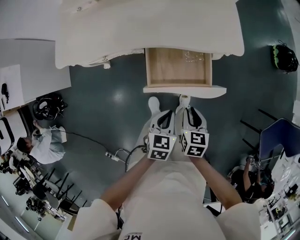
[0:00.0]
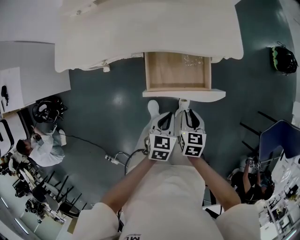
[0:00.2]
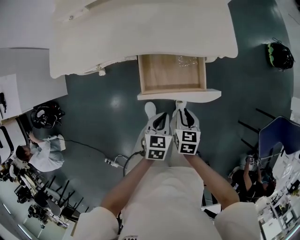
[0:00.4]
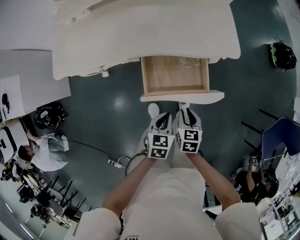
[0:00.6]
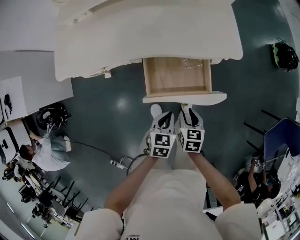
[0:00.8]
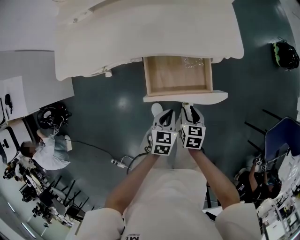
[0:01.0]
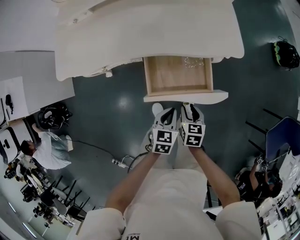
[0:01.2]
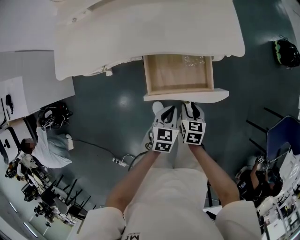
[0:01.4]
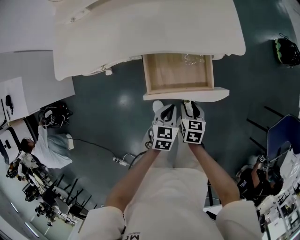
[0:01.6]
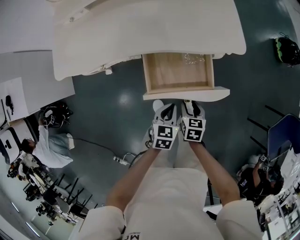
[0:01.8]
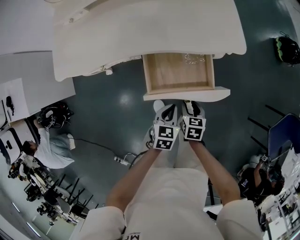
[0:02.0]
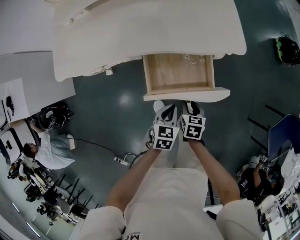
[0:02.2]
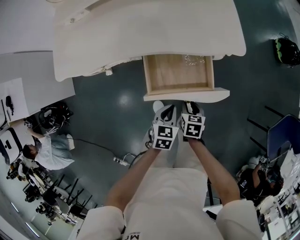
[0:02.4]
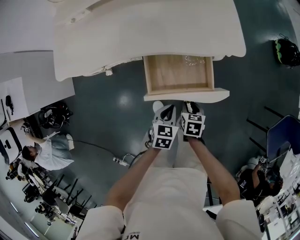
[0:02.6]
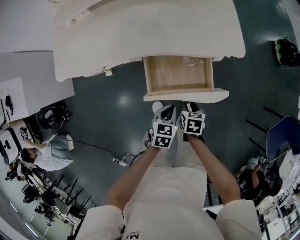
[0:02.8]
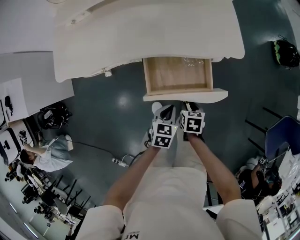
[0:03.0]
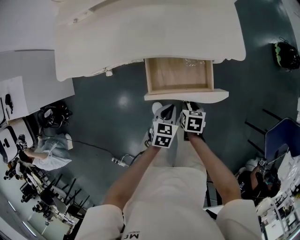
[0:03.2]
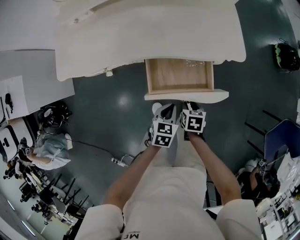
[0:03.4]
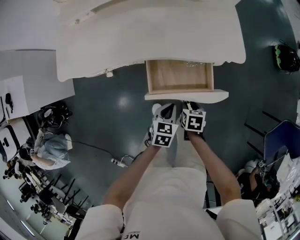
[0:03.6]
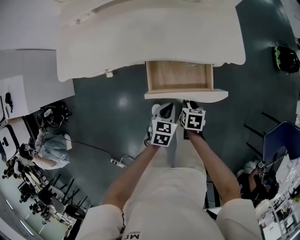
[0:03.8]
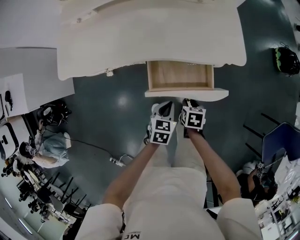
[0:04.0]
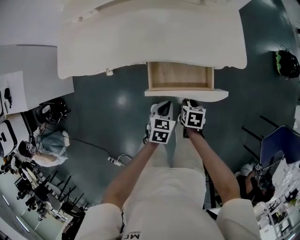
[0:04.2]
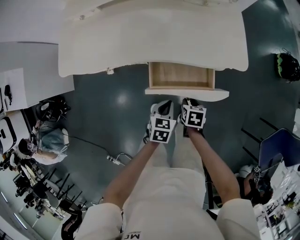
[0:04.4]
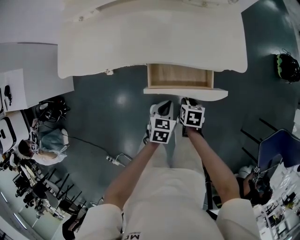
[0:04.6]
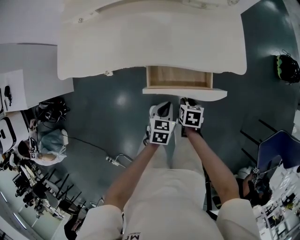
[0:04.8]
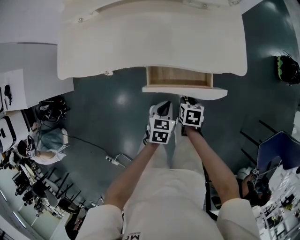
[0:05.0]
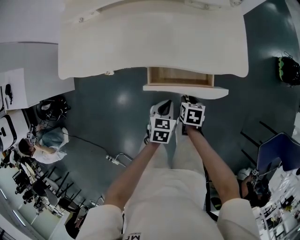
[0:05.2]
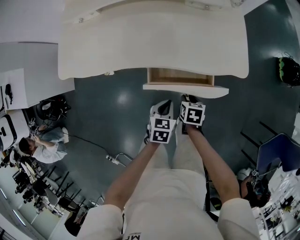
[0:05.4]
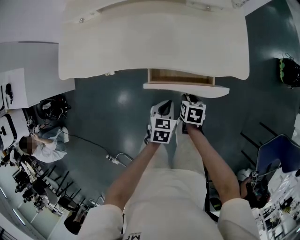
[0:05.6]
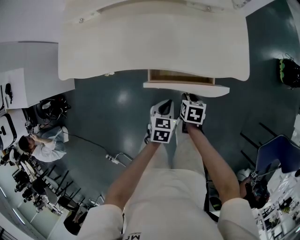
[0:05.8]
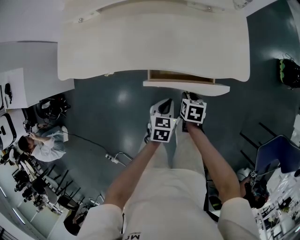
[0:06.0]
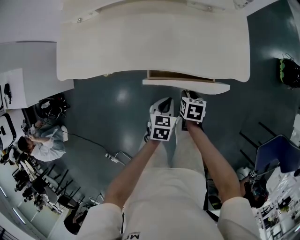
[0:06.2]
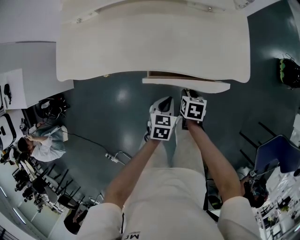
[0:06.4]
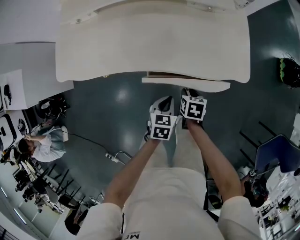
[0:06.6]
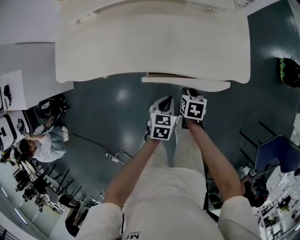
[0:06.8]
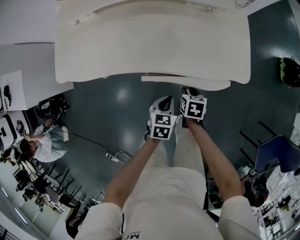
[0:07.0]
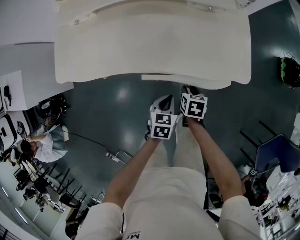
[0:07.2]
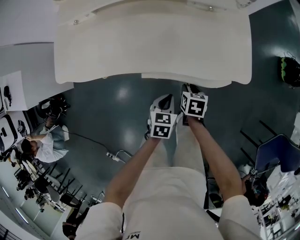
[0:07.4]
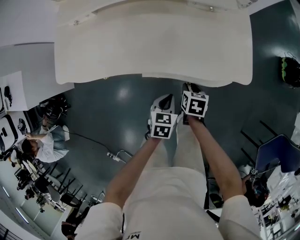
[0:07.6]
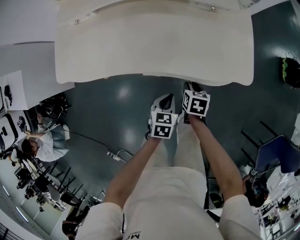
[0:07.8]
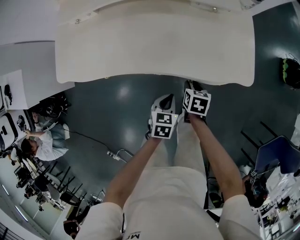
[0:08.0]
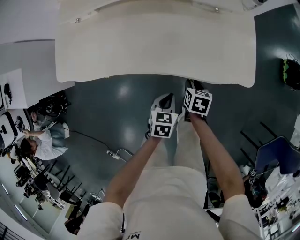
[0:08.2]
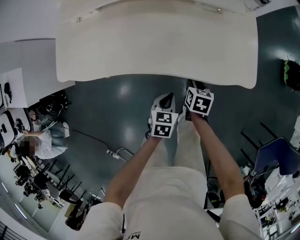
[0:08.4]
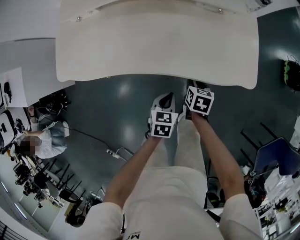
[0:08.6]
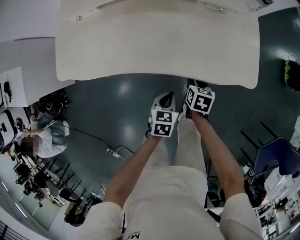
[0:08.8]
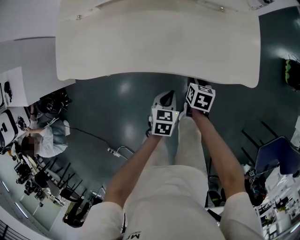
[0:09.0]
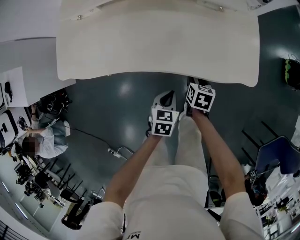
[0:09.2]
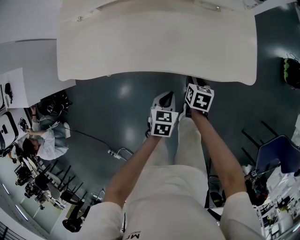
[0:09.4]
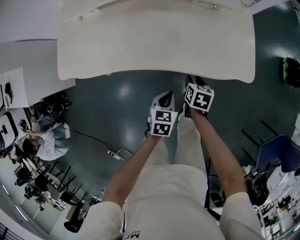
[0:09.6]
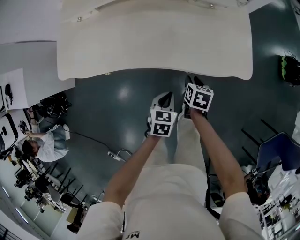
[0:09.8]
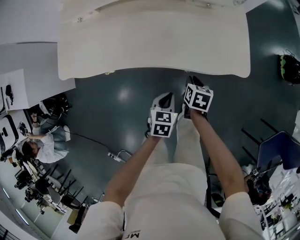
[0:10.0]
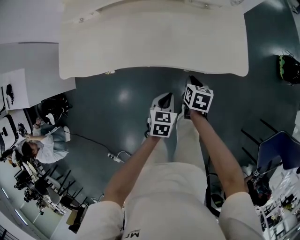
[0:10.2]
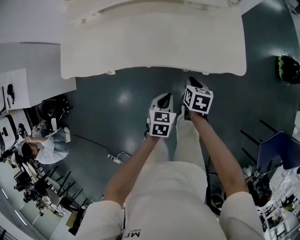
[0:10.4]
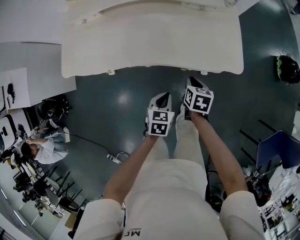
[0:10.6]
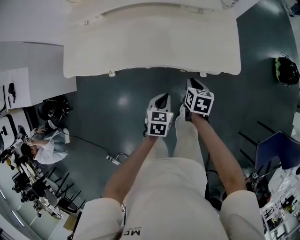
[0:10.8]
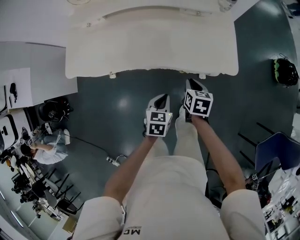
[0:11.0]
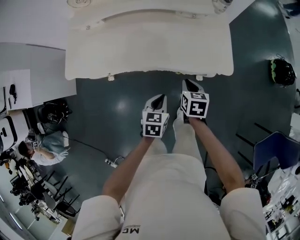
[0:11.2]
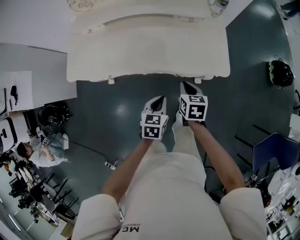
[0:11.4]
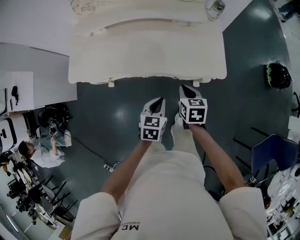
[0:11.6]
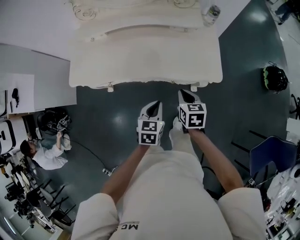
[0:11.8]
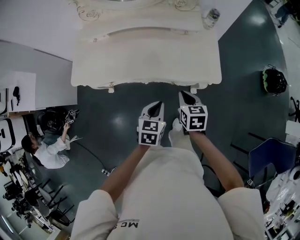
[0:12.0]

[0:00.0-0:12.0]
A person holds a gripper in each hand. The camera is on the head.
0:00.0 to 0:01.6: The grippers both shift downward by about 10 cm. The right gripper opens.
0:01.6 to 0:03.0: The grippers move only a little.
0:03.0 to 0:04.4: The grippers stay close to where they were, moving slightly.
0:04.4 to 0:06.0: The right gripper heads forward, covering some 5 cm.
0:06.0 to 0:07.6: The right gripper is displaced forward by roughly 5 cm.
0:07.6 to 0:09.0: There are only small adjustments of the grippers.
0:09.0 to 0:10.4: The right gripper travels upward by about 5 cm, and closes, while the left gripper ends up some 5 cm from where it was.
0:10.4 to 0:12.0: Both grippers travel together upward, roughly 15 cm.

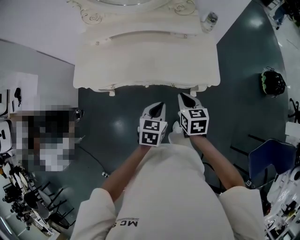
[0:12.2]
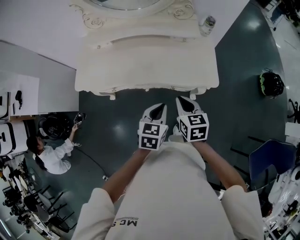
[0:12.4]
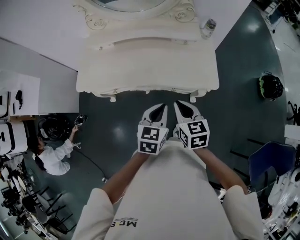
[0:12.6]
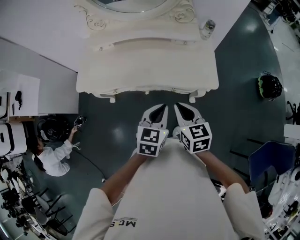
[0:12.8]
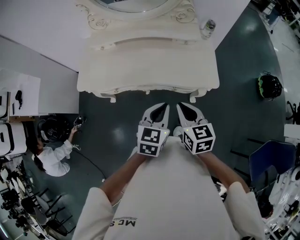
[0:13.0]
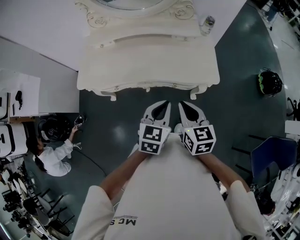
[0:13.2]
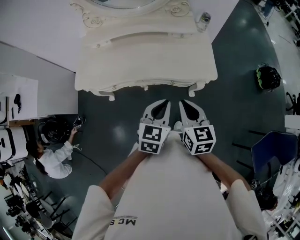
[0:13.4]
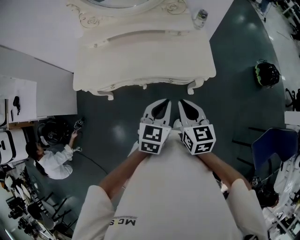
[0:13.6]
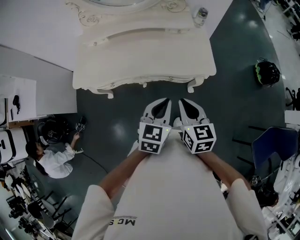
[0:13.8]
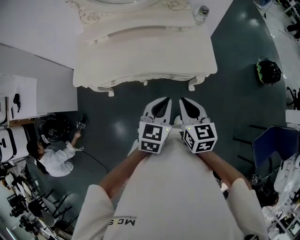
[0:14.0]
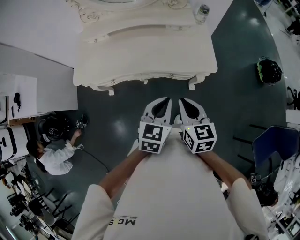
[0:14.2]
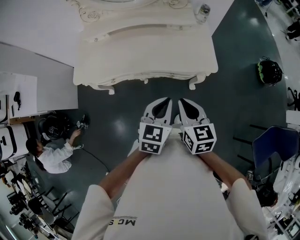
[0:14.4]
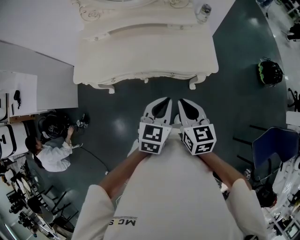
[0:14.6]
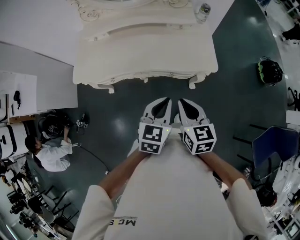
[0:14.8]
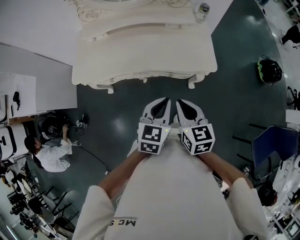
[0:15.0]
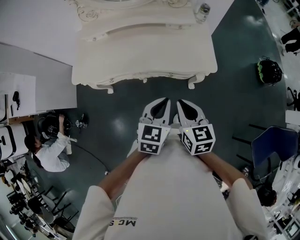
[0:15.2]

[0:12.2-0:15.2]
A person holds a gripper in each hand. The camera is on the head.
0:12.2 to 0:13.8: The right gripper goes approximately 10 cm upward and backward. Meanwhile the left gripper travels upward by about 10 cm.
0:13.8 to 0:15.2: The grippers make only small movements.

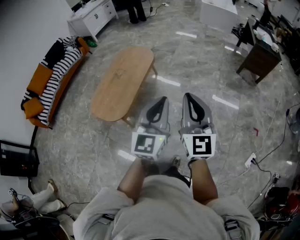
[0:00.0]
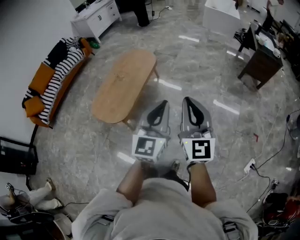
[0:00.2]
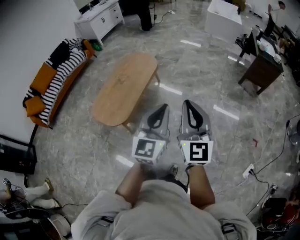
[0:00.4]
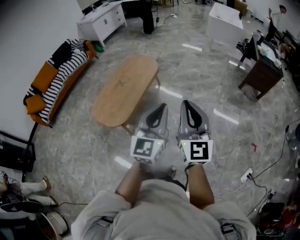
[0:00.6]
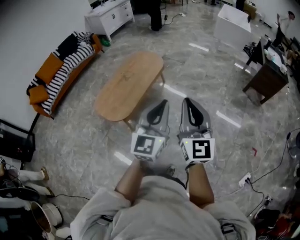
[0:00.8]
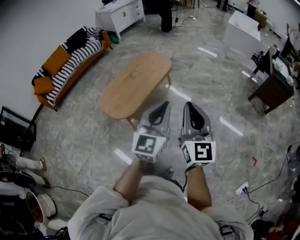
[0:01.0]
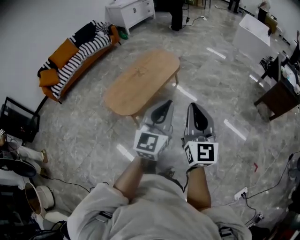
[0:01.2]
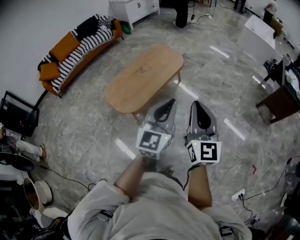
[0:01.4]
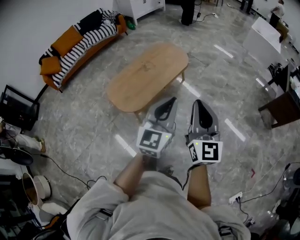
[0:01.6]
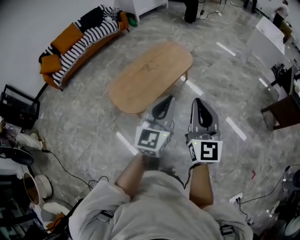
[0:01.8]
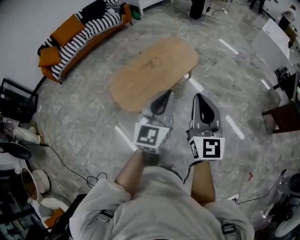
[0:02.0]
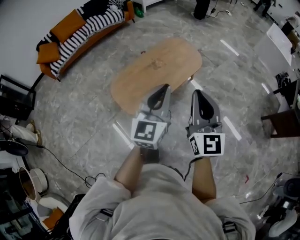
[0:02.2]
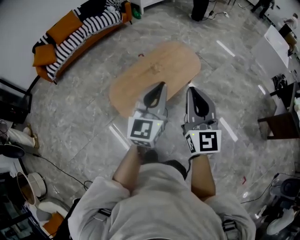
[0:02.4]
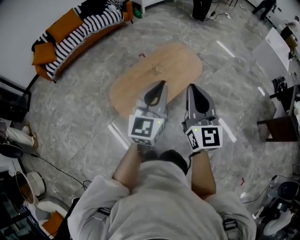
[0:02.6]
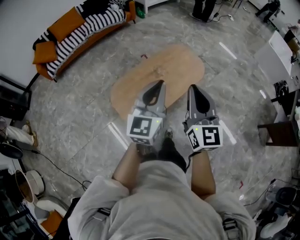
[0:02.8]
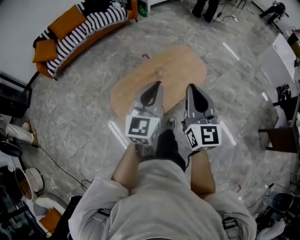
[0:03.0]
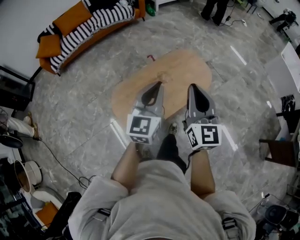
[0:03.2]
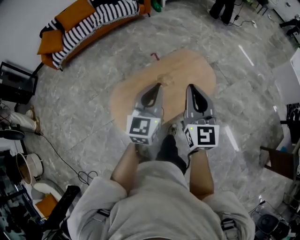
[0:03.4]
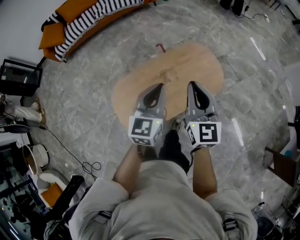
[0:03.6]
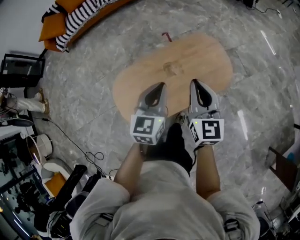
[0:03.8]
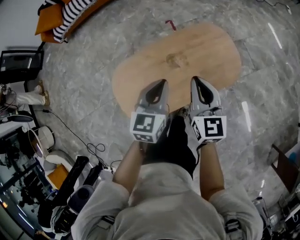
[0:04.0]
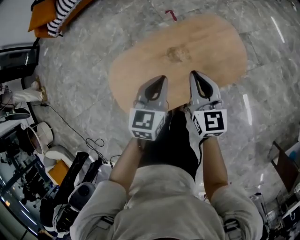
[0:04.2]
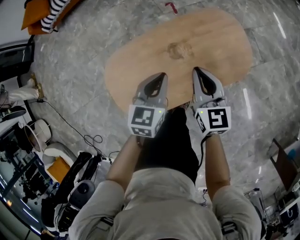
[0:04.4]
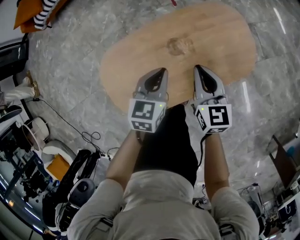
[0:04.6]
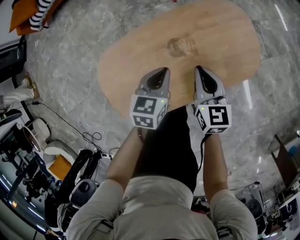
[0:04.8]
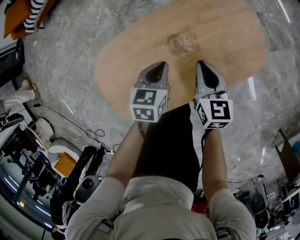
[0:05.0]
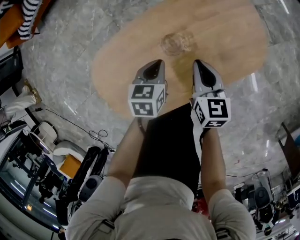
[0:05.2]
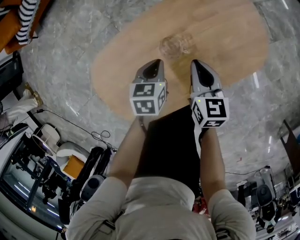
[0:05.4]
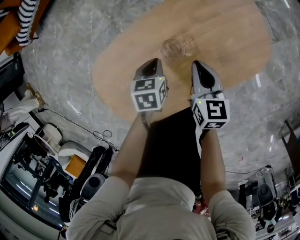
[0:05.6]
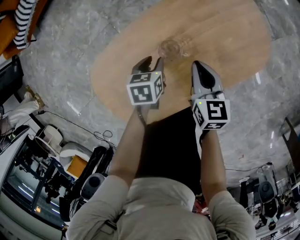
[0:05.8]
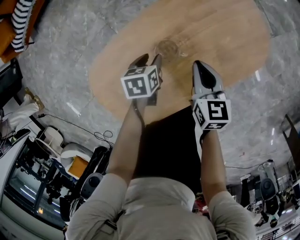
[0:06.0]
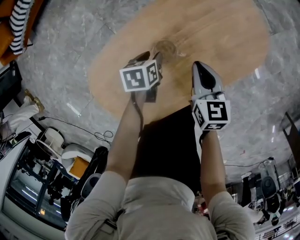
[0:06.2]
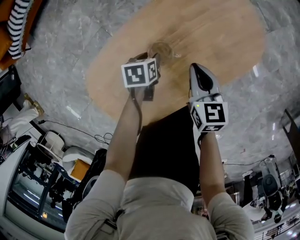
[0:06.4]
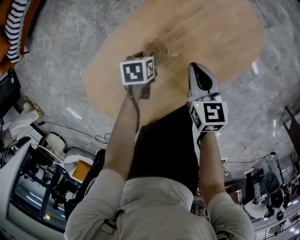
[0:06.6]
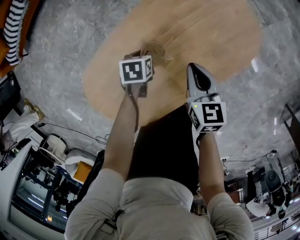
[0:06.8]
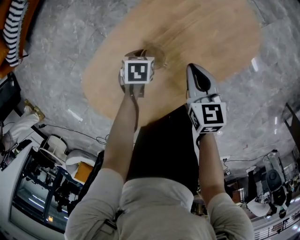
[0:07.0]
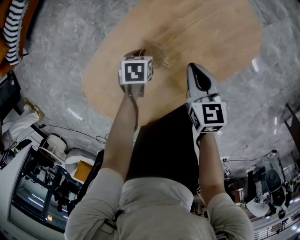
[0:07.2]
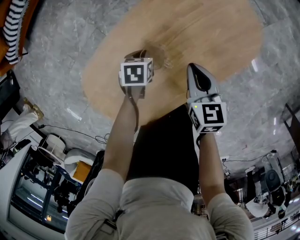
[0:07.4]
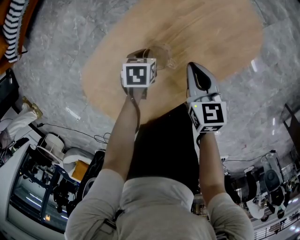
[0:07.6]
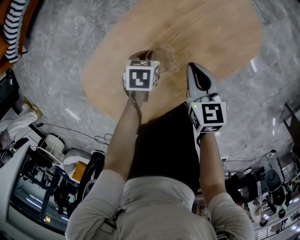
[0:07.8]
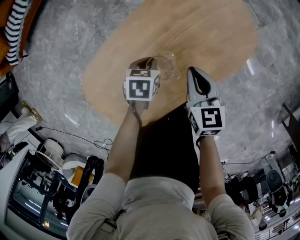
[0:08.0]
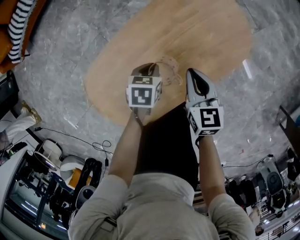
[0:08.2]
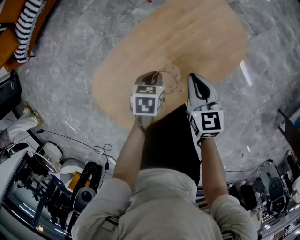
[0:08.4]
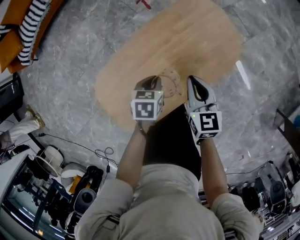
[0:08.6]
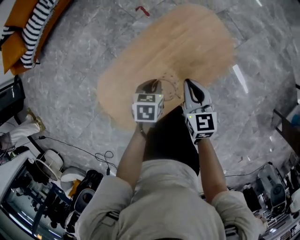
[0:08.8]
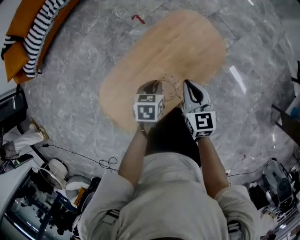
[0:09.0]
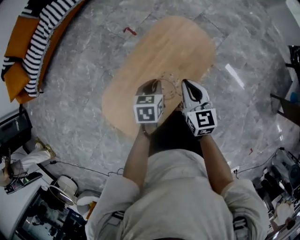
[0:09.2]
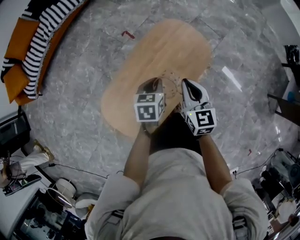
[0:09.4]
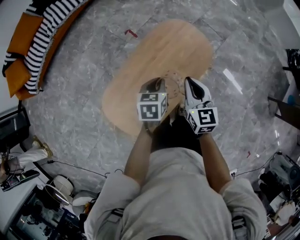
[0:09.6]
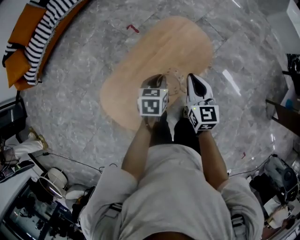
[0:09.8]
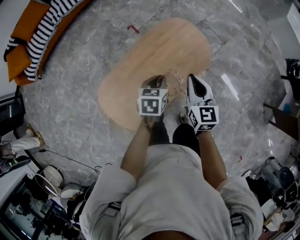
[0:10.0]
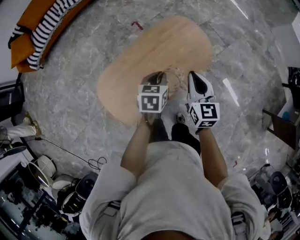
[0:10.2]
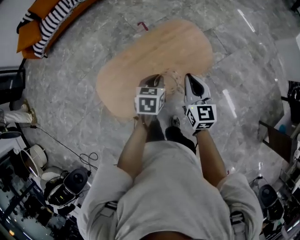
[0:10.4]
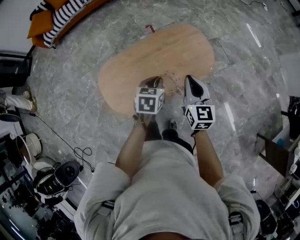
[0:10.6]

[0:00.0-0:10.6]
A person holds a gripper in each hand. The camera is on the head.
0:00.0 to 0:01.6: Both grippers travel together forward and to the left, some 10 cm.
0:01.6 to 0:03.0: Both grippers move forward and to the left, some 40 cm.
0:03.0 to 0:04.6: The grippers both shift downward and forward by roughly 50 cm. The left gripper tilts its fingers approximately 40 degrees downward; the right gripper turns by about 40 degrees.
0:04.6 to 0:06.0: Both grippers move downward, about 20 cm. The left gripper swivels about 30 degrees, and opens up.
0:06.0 to 0:07.6: The left gripper closes.
0:07.6 to 0:09.0: Both grippers travel together upward, some 25 cm.
0:09.0 to 0:10.6: The right gripper travels to the right, upward and backward by about 20 cm; the left gripper heads upward, to the right and backward, covering approximately 20 cm.
